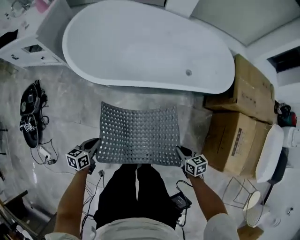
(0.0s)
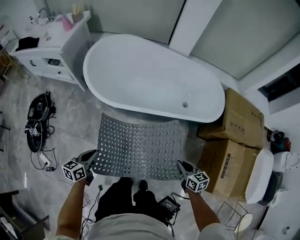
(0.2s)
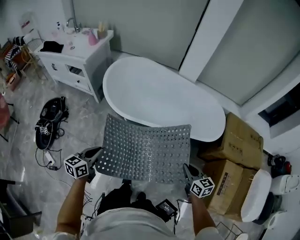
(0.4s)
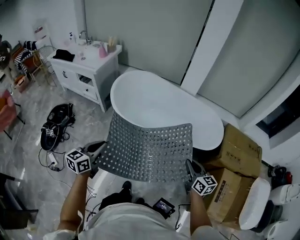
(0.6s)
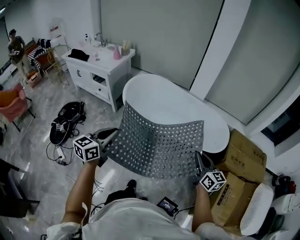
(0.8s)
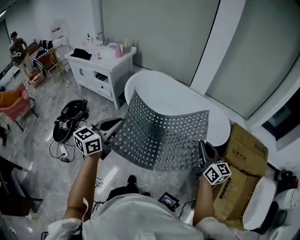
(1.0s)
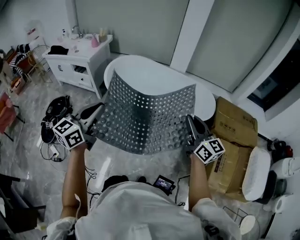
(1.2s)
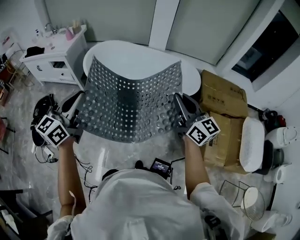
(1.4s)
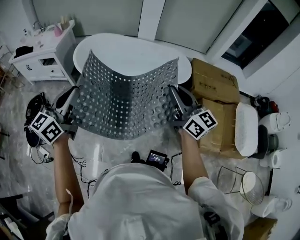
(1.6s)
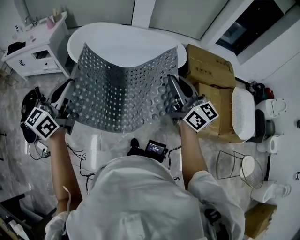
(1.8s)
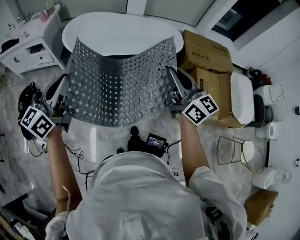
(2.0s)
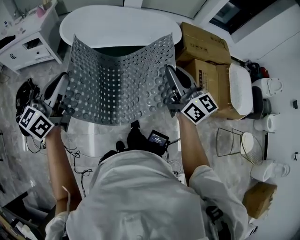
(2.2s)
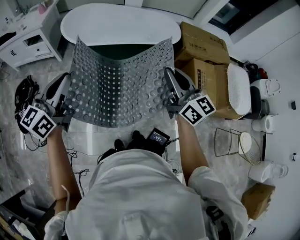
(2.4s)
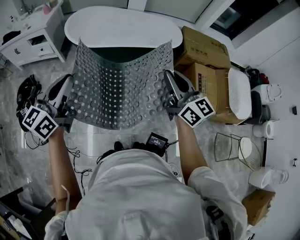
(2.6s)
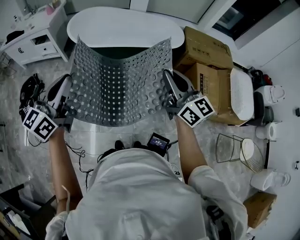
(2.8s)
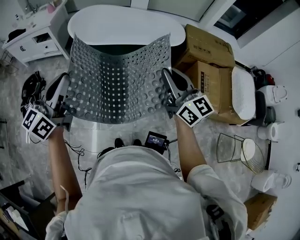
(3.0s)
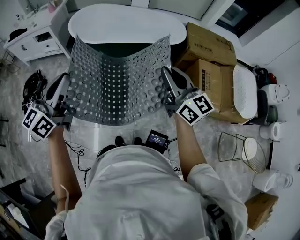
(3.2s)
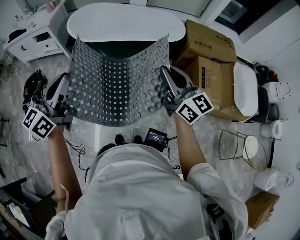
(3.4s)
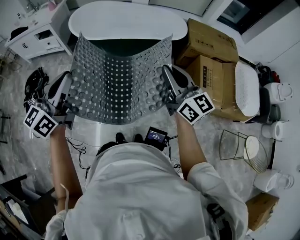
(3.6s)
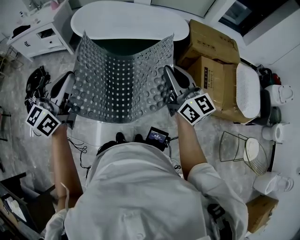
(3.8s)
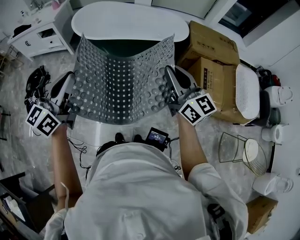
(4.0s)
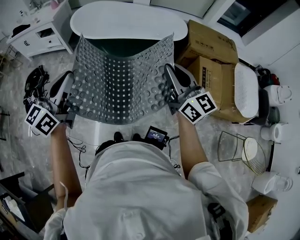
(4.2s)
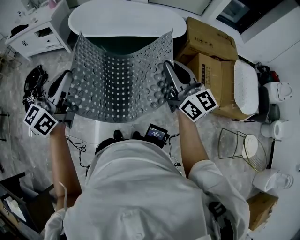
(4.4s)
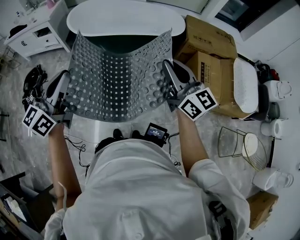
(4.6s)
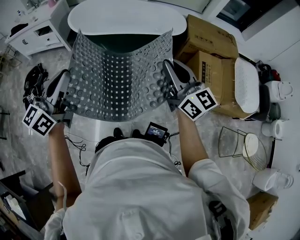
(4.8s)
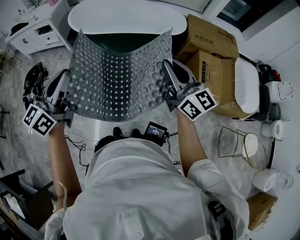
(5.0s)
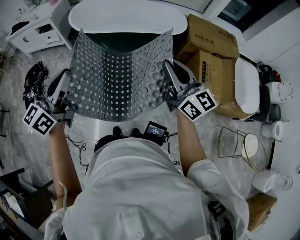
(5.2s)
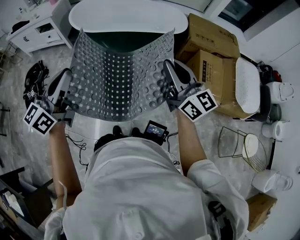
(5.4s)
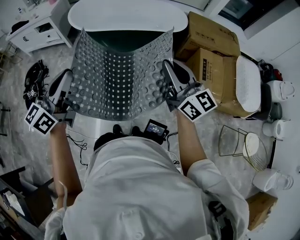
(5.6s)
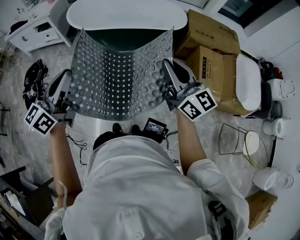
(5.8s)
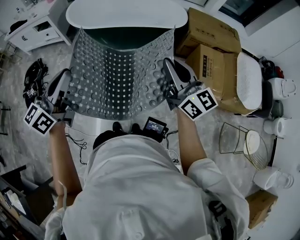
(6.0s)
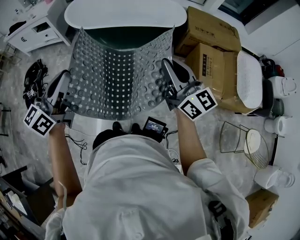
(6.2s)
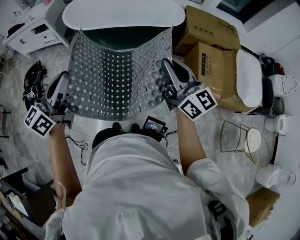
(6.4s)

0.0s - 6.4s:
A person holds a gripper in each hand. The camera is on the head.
0.0s - 1.6s: Both grippers move upward, about 60 cm. The left gripper points its fingers about 40 degrees further upward. Meanwhile the right gripper tips its fingers upward by roughly 50 degrees.
1.6s - 3.2s: Both grippers travel together backward, approximately 15 cm.
3.2s - 4.8s: Both grippers stay put.
4.8s - 6.4s: There are only small adjustments of the grippers.

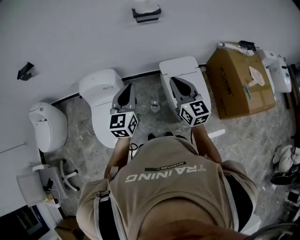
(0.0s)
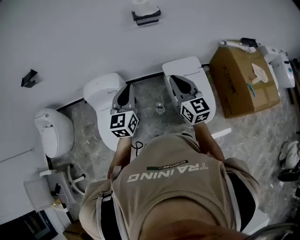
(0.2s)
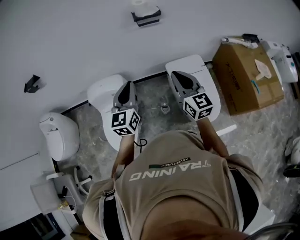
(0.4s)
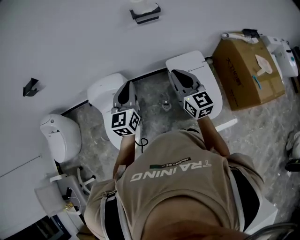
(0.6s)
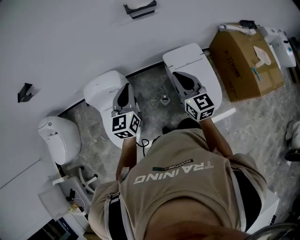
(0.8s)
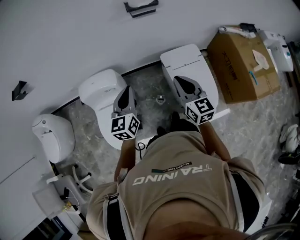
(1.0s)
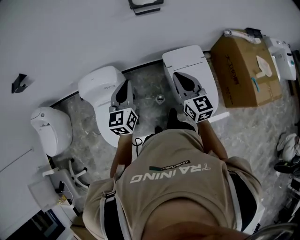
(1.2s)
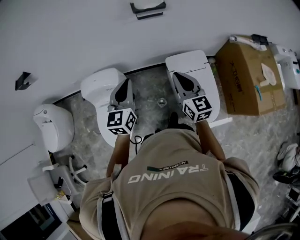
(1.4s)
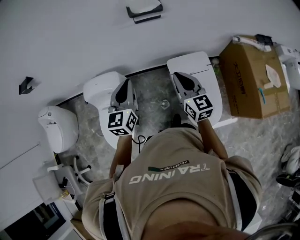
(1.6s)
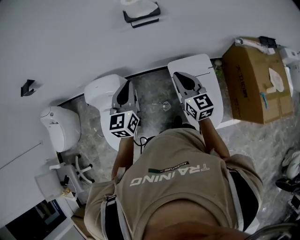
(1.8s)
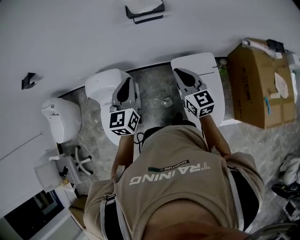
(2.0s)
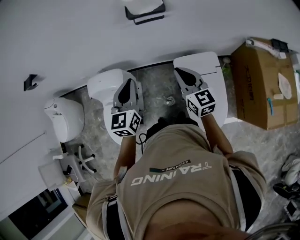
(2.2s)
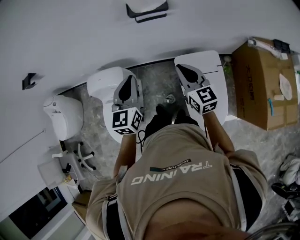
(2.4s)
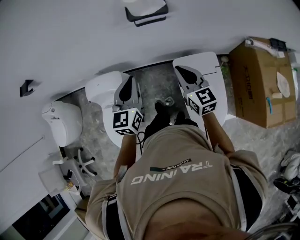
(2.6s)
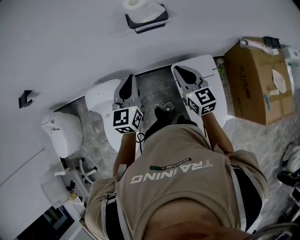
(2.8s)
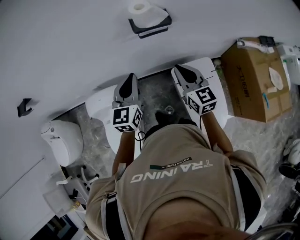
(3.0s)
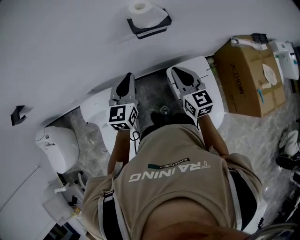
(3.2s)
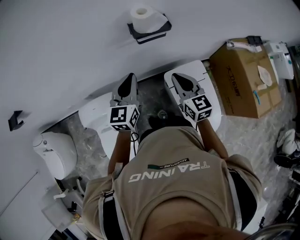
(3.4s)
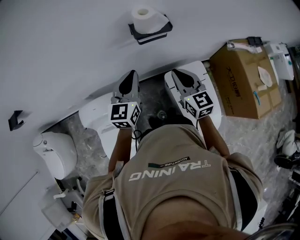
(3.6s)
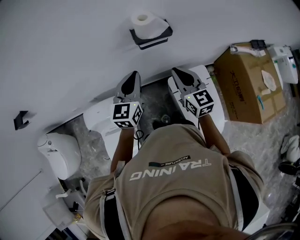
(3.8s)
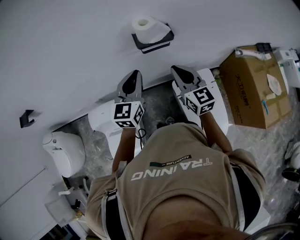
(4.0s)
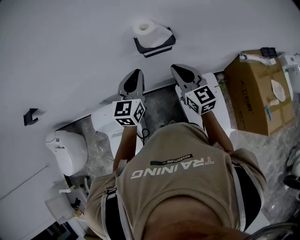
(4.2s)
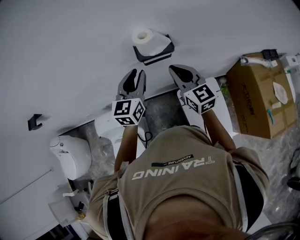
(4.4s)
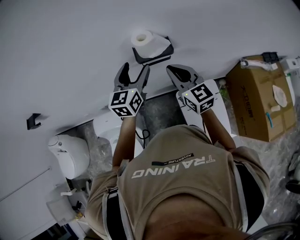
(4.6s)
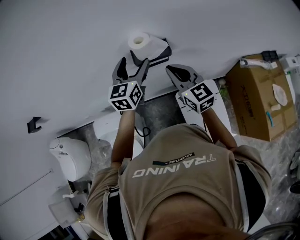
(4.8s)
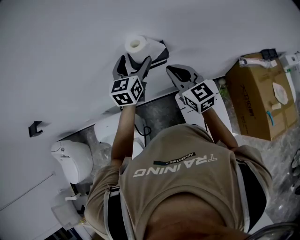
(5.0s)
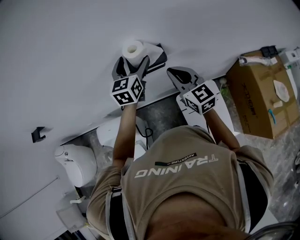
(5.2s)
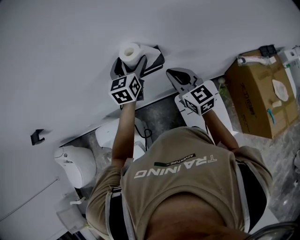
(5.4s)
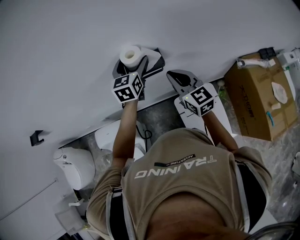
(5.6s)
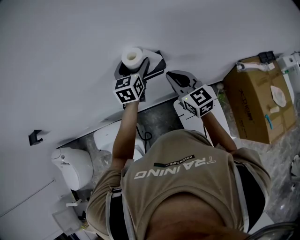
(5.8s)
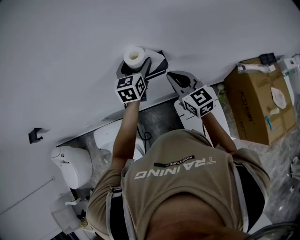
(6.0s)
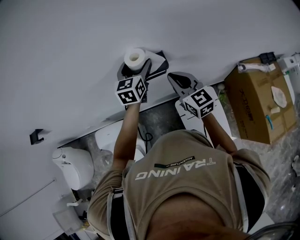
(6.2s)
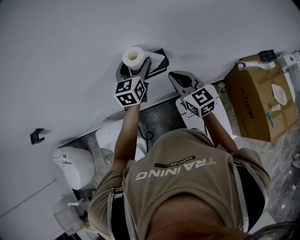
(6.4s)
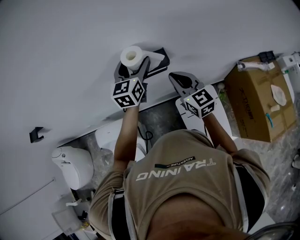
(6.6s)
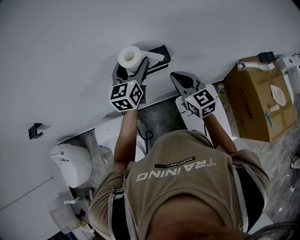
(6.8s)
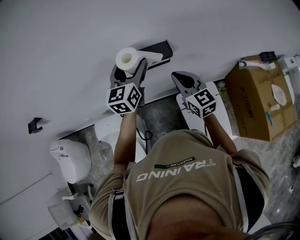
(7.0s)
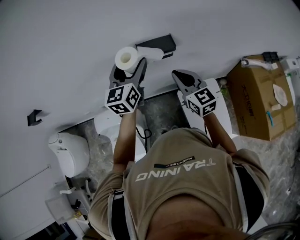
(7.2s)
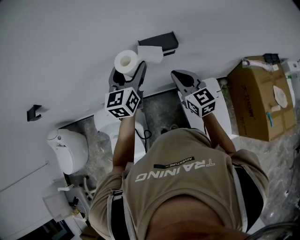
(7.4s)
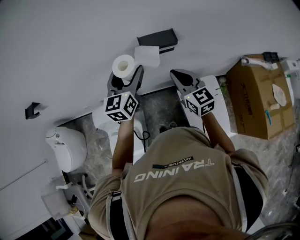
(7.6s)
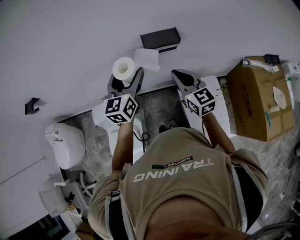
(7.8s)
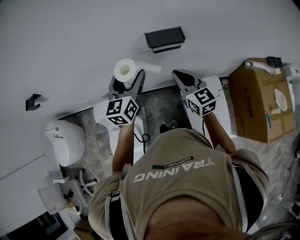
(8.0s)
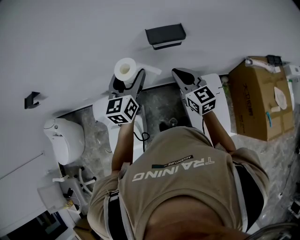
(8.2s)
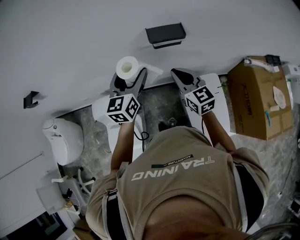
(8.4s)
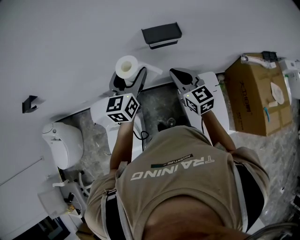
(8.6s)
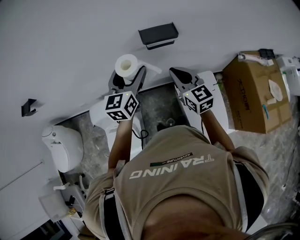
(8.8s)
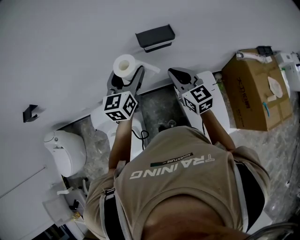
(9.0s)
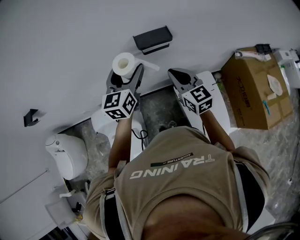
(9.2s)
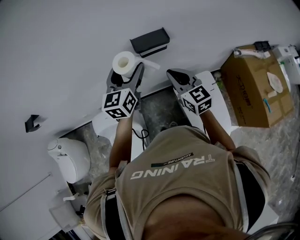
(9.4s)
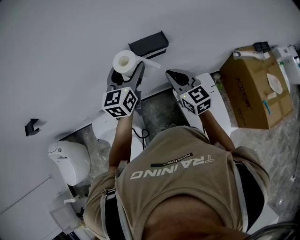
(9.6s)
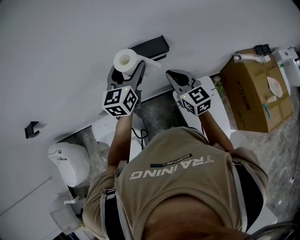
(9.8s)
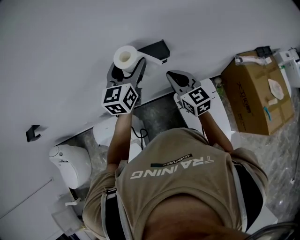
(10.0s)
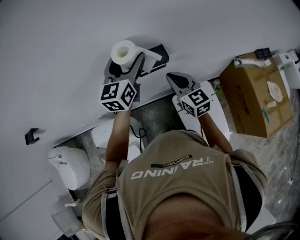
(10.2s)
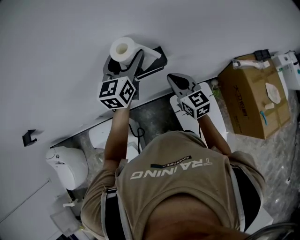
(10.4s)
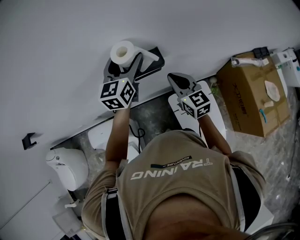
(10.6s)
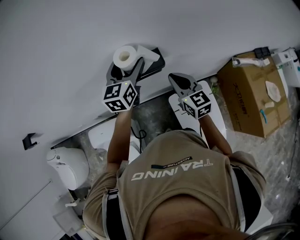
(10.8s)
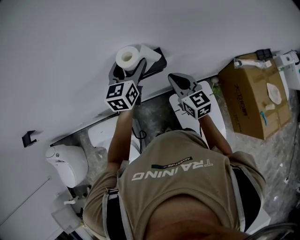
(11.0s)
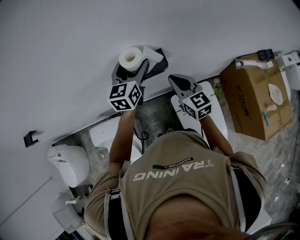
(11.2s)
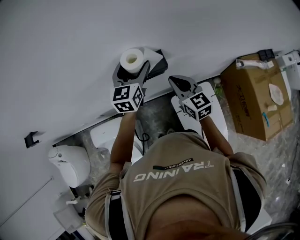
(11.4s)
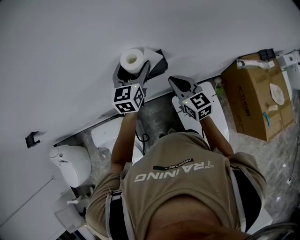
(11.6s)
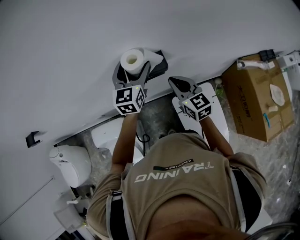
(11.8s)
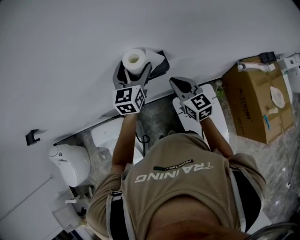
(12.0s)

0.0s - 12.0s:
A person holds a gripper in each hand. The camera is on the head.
0.0s - 1.6s: The grippers both shift forward by about 15 cm.
1.6s - 3.0s: The grippers both shift forward by roughly 15 cm.
3.0s - 4.4s: The right gripper moves forward and upward, roughly 10 cm; the left gripper heads forward, covering approximately 10 cm.
4.4s - 6.0s: The right gripper shifts by about 5 cm. Meanwhile the left gripper heads forward and to the right, covering some 15 cm, and opens up.
6.0s - 7.6s: The right gripper travels backward and to the left by some 10 cm. The left gripper moves backward and to the left, approximately 20 cm.
7.6s - 9.0s: The grippers make only small movements.
9.0s - 10.4s: Both grippers travel together forward and to the right, about 15 cm.
10.4s - 12.0s: The left gripper heads downward, covering approximately 10 cm.

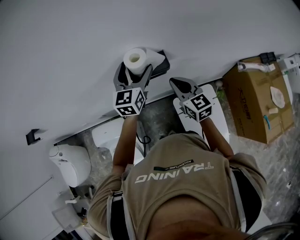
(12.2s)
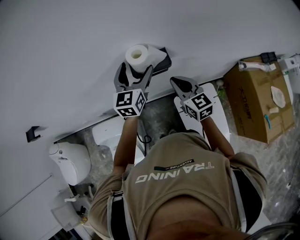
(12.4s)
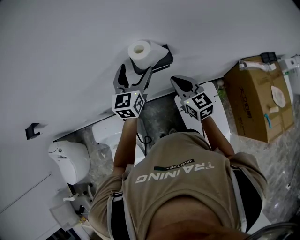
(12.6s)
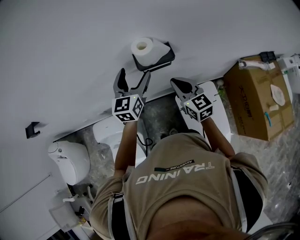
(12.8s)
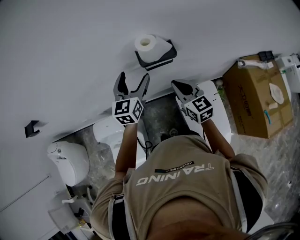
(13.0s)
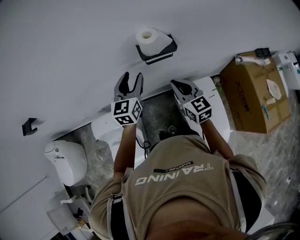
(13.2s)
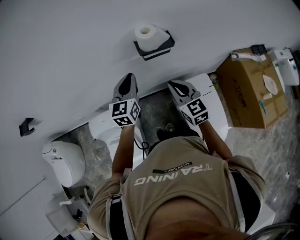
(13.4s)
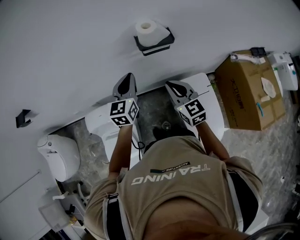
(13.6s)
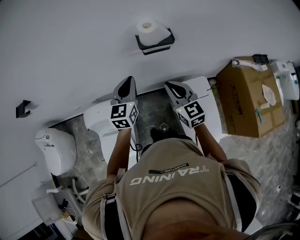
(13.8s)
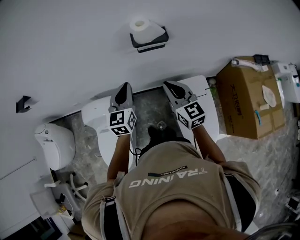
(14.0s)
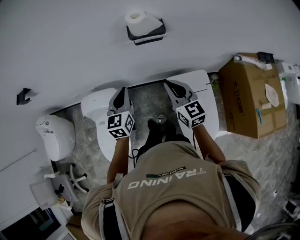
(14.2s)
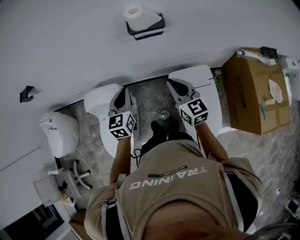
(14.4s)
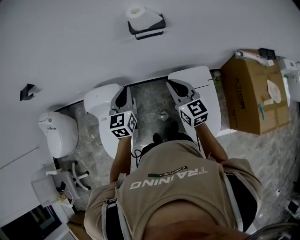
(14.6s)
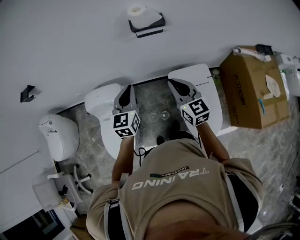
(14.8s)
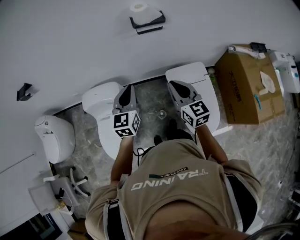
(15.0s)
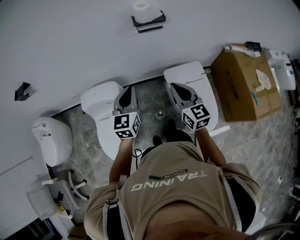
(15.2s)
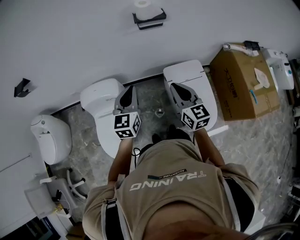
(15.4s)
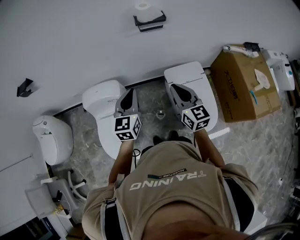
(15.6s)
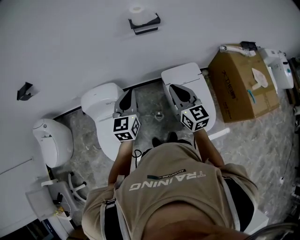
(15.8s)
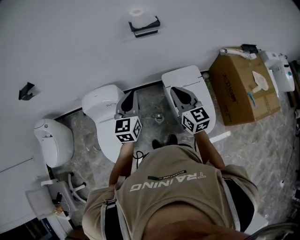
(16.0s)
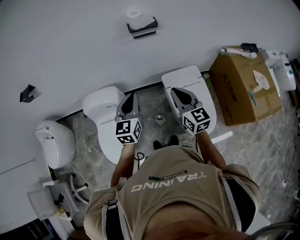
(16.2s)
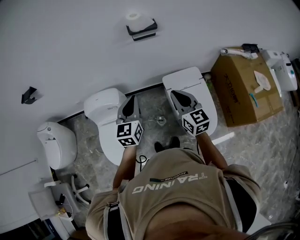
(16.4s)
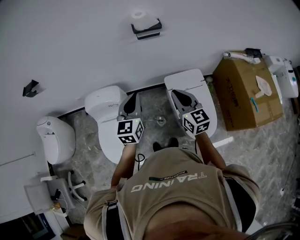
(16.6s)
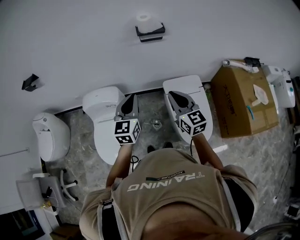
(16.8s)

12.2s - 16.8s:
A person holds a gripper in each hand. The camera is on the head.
12.2s - 13.8s: Both grippers travel together backward and to the left, roughly 20 cm. The left gripper closes up.
13.8s - 15.2s: Both grippers move backward, some 20 cm.
15.2s - 16.8s: The grippers both shift backward by about 5 cm.

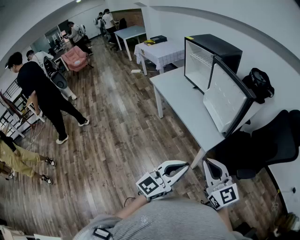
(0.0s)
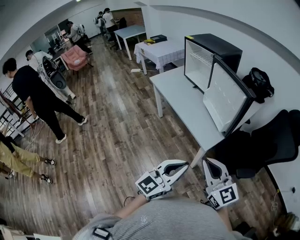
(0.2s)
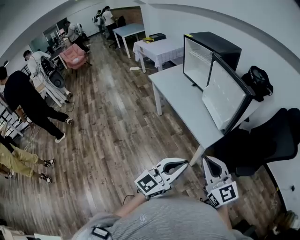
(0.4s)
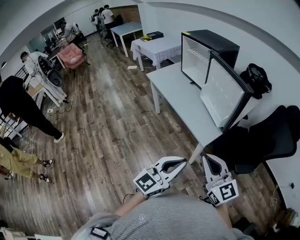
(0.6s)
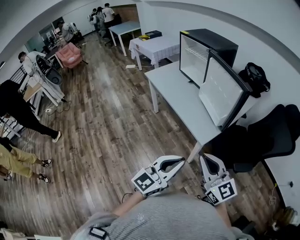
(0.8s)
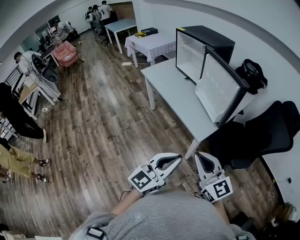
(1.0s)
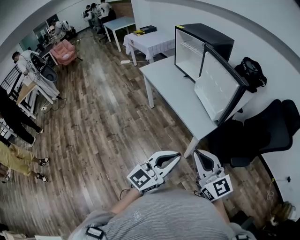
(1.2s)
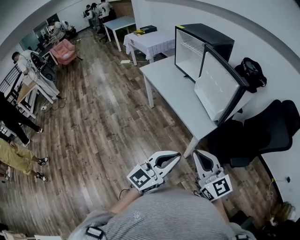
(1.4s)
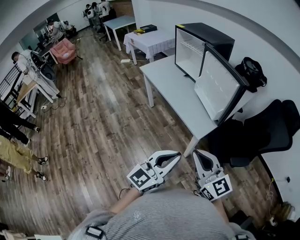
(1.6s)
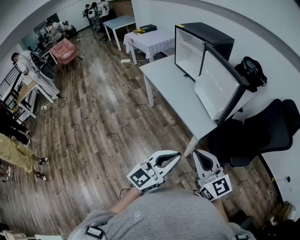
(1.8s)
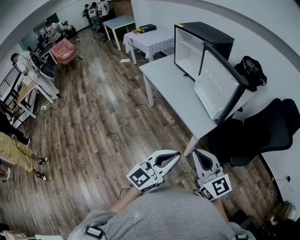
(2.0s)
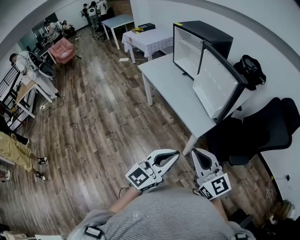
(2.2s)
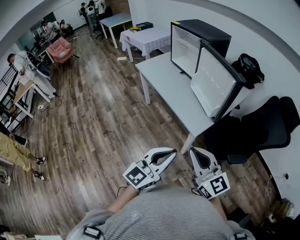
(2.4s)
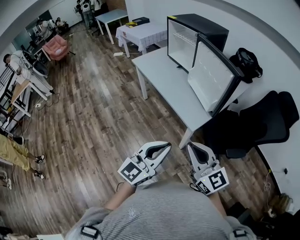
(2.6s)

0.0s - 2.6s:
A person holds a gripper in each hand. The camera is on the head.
0.0s - 2.6s: The grippers stay close to where they were, moving slightly.
